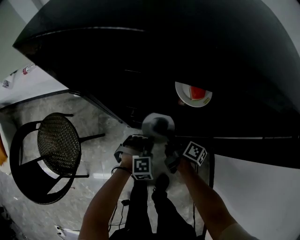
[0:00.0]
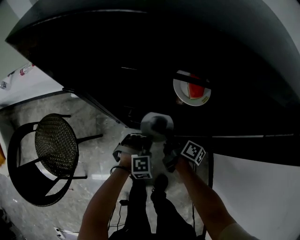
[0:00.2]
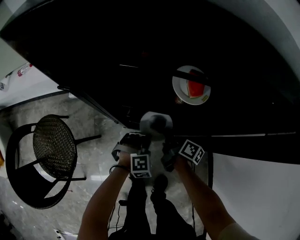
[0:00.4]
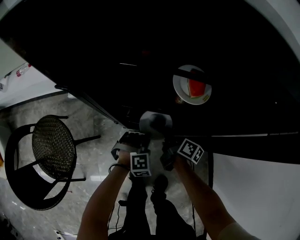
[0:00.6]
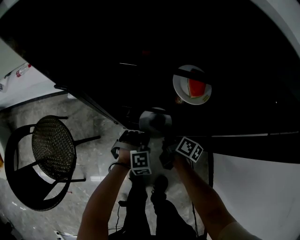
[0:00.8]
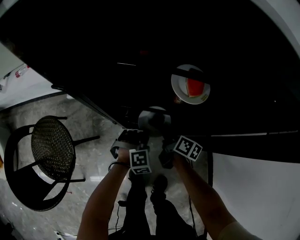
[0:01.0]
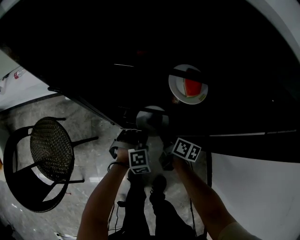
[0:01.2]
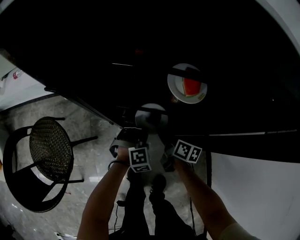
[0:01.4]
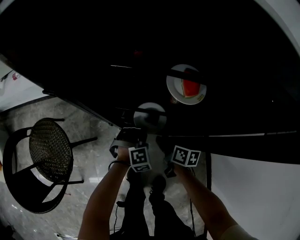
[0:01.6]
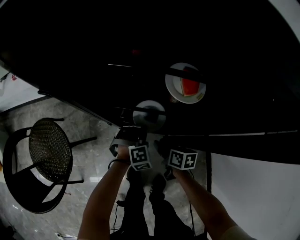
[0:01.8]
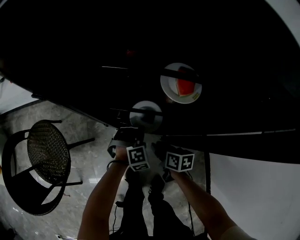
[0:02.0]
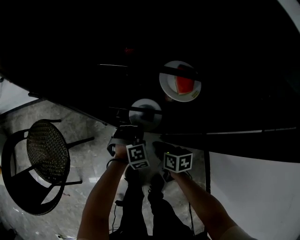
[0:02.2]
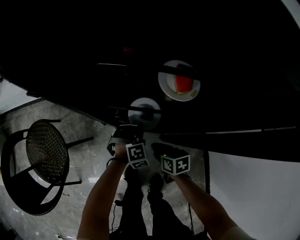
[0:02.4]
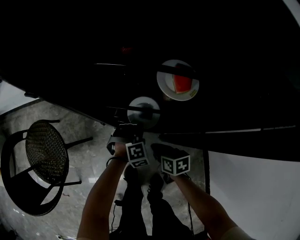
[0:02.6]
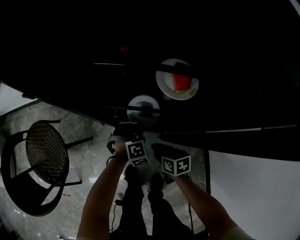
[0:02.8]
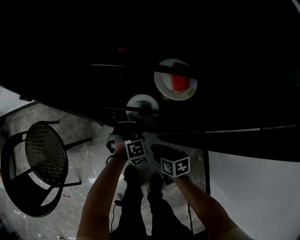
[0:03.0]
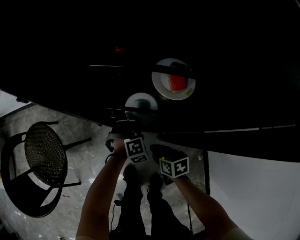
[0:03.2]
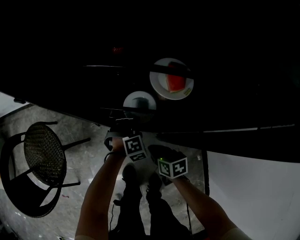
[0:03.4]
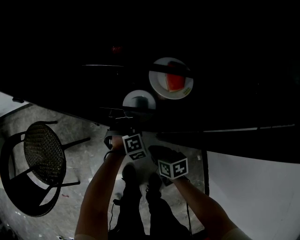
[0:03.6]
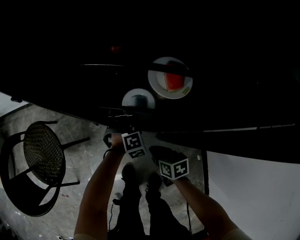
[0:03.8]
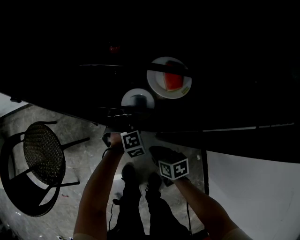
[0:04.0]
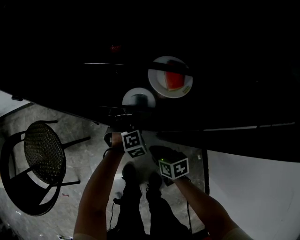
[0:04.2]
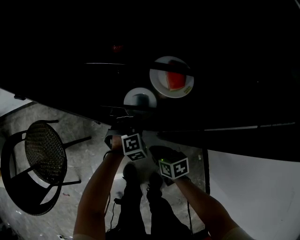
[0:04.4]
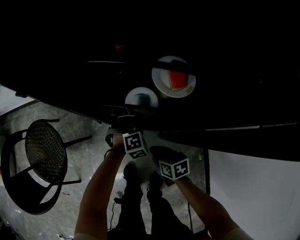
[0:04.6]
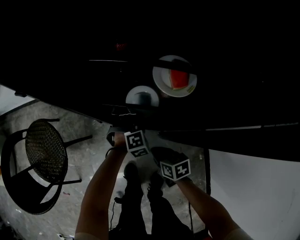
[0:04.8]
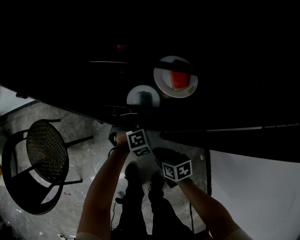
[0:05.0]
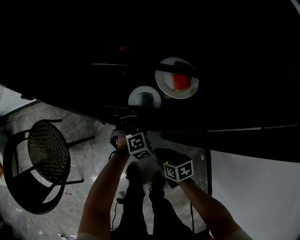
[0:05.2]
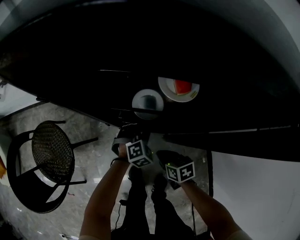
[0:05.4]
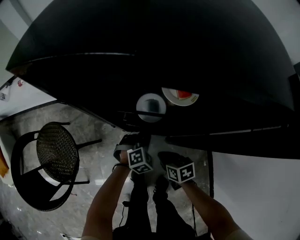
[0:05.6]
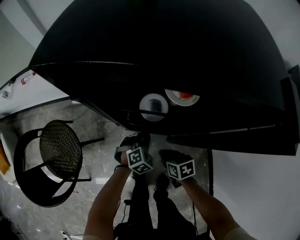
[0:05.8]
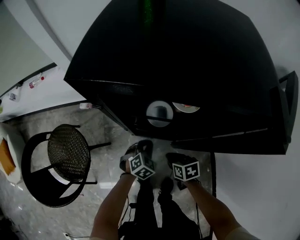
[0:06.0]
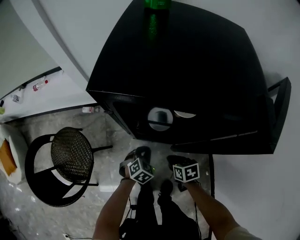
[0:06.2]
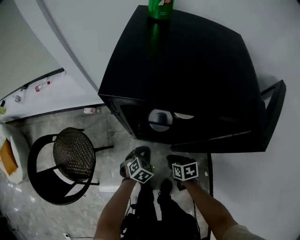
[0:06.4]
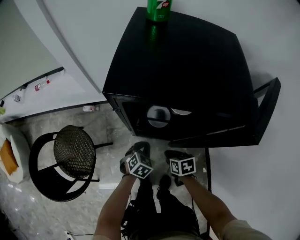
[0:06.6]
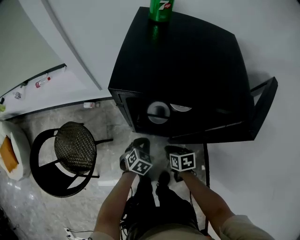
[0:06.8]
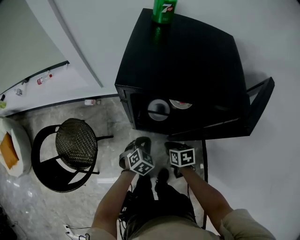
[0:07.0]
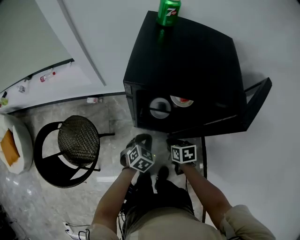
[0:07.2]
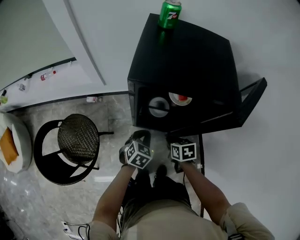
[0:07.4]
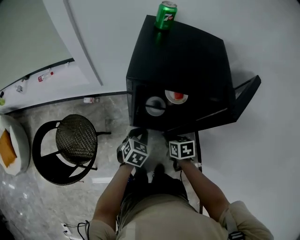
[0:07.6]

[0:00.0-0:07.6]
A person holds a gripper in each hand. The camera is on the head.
0.0 to 1.6 s: The right gripper swivels roughly 30 degrees, and opens up, while the left gripper moves approximately 5 cm.
1.6 to 3.0 s: The right gripper ends up approximately 5 cm from where it was, rotates approximately 20 degrees, and closes up.
3.0 to 4.6 s: The grippers move only a little.
4.6 to 6.0 s: The left gripper goes roughly 10 cm upward, backward and to the left, and changes its angle by roughly 30 degrees, while the right gripper is displaced upward by approximately 5 cm.
6.0 to 7.6 s: Both grippers travel together upward, approximately 20 cm. The left gripper swivels about 20 degrees.

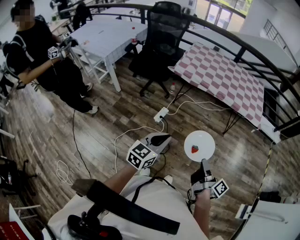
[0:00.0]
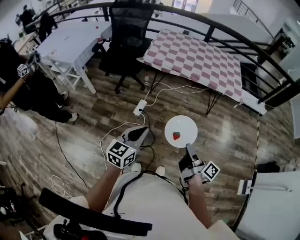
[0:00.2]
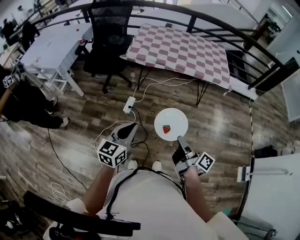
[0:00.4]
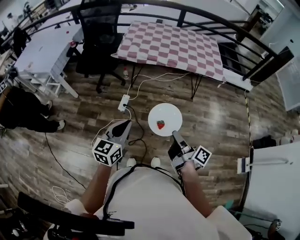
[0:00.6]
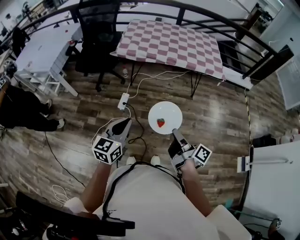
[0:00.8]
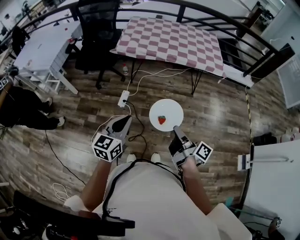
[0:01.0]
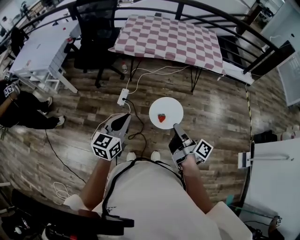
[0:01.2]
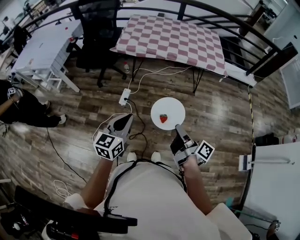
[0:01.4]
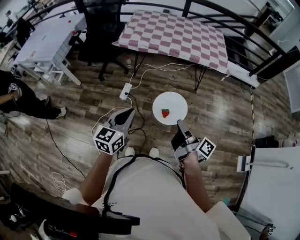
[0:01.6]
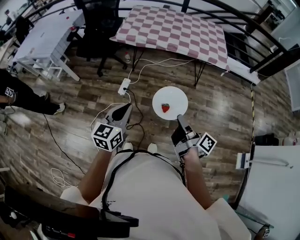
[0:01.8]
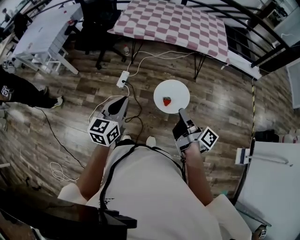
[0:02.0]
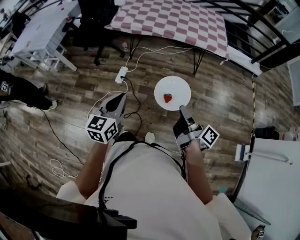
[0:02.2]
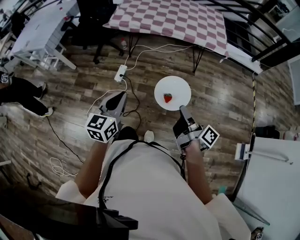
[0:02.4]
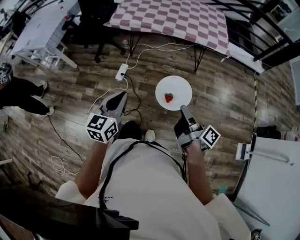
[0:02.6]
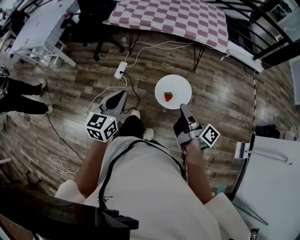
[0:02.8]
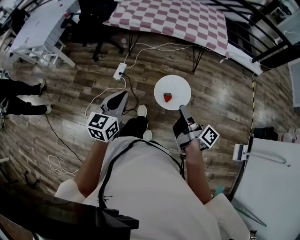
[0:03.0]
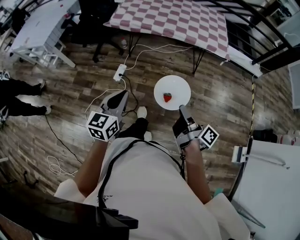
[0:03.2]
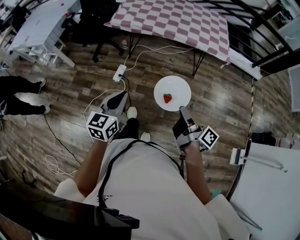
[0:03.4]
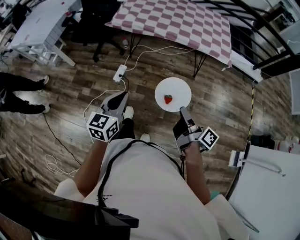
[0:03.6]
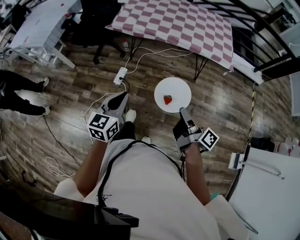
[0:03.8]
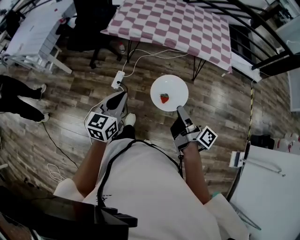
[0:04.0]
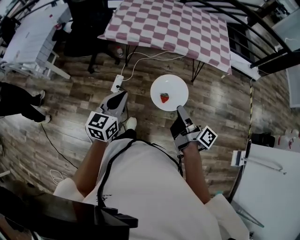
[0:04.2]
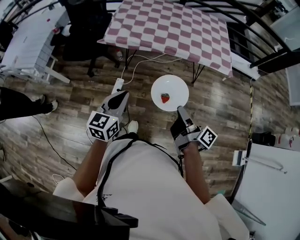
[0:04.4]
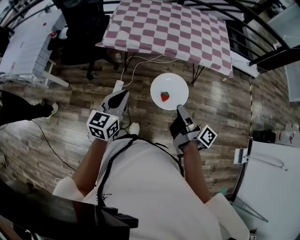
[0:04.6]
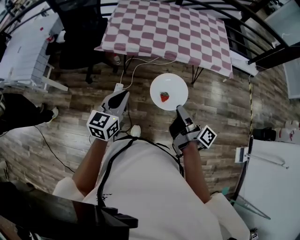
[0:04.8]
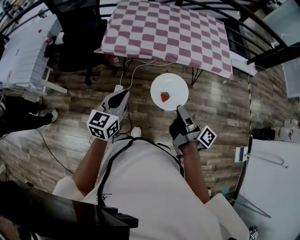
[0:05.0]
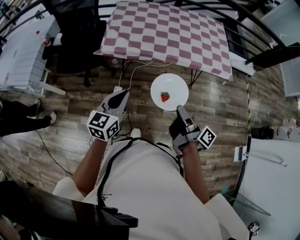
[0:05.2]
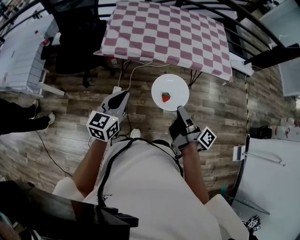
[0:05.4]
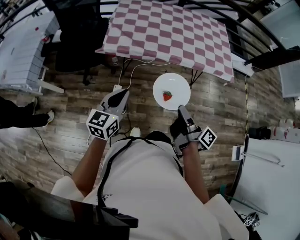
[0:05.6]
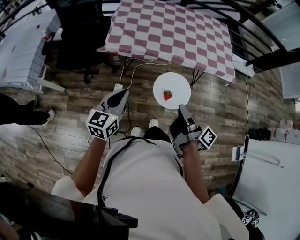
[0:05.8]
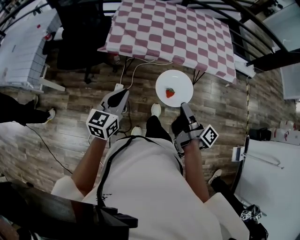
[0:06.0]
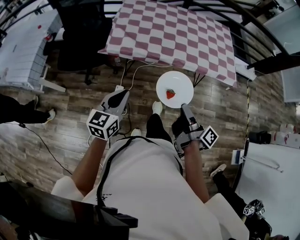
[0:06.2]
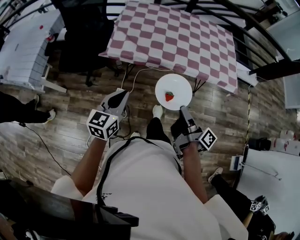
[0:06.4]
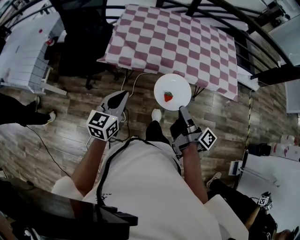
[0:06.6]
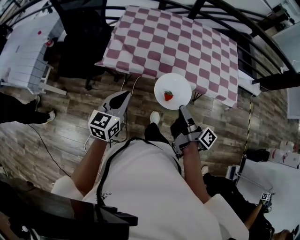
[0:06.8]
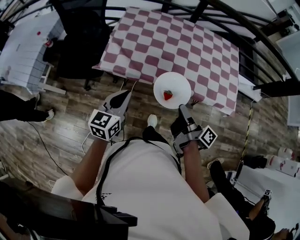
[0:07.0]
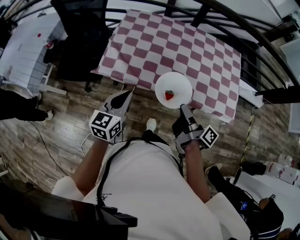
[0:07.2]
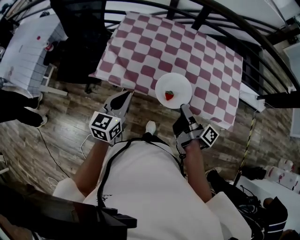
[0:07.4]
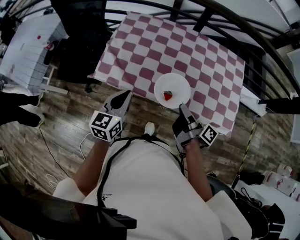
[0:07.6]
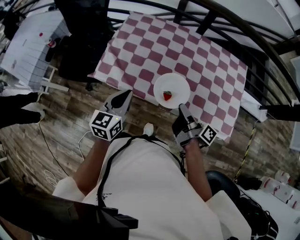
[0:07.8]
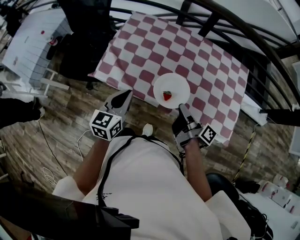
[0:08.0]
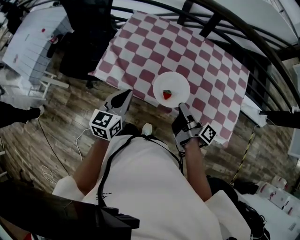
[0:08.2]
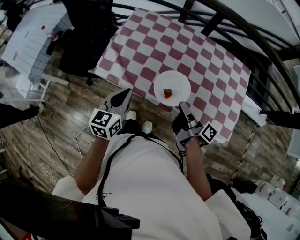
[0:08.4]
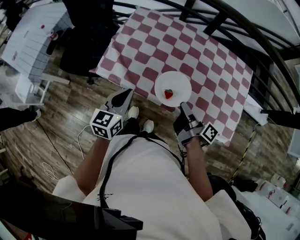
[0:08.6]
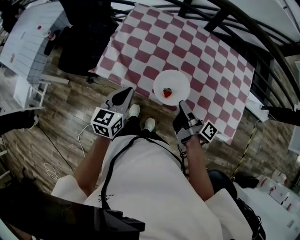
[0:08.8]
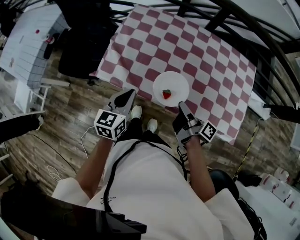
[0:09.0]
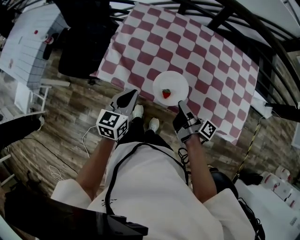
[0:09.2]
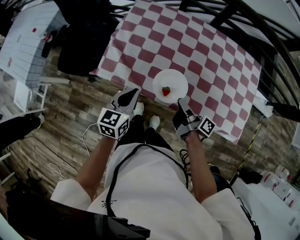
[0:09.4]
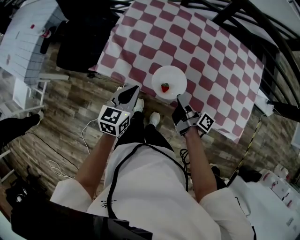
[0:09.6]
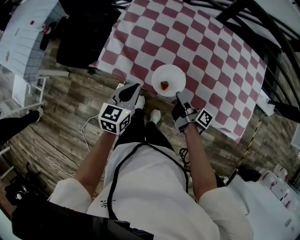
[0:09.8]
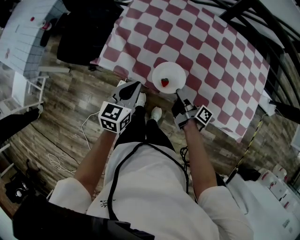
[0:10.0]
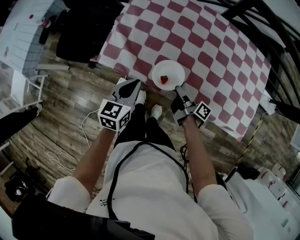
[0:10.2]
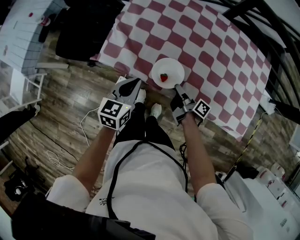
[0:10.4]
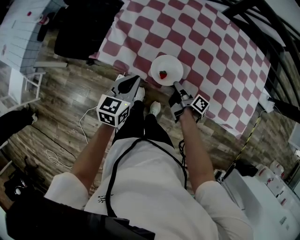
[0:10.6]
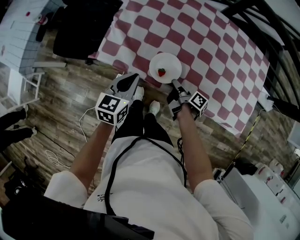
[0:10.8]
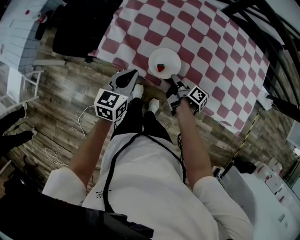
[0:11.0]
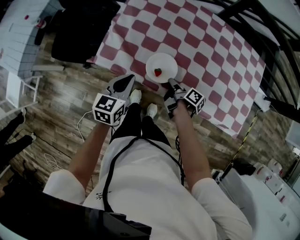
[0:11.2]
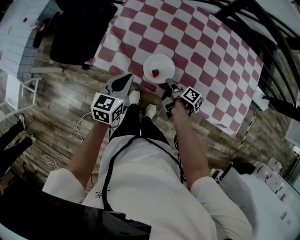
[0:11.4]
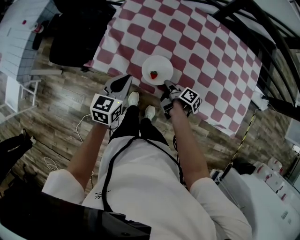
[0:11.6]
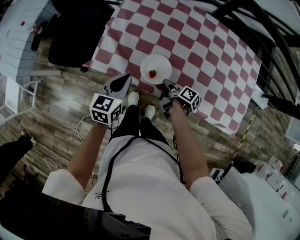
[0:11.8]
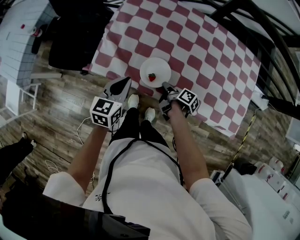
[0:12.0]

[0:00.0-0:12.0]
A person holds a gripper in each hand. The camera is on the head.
0.0 to 1.6 s: The left gripper ends up some 5 cm from where it was.
1.6 to 3.0 s: The left gripper moves some 5 cm.
3.0 to 4.4 s: The left gripper changes place by roughly 25 cm.
4.4 to 6.0 s: The left gripper moves about 15 cm.
6.0 to 7.6 s: The left gripper changes place by roughly 30 cm.
7.6 to 9.0 s: The left gripper shifts by approximately 10 cm.
9.0 to 10.4 s: The left gripper heads downward, covering approximately 10 cm.

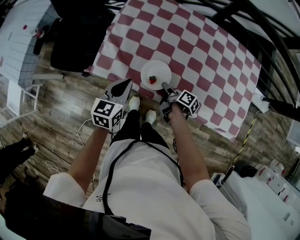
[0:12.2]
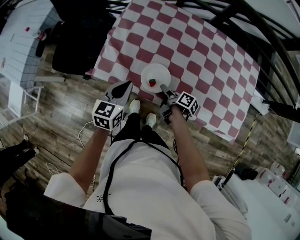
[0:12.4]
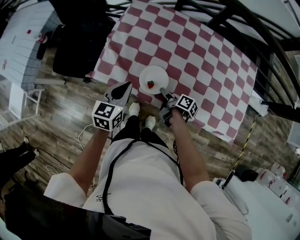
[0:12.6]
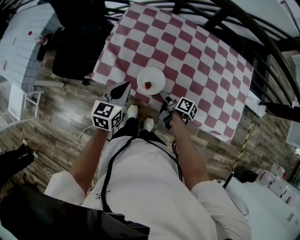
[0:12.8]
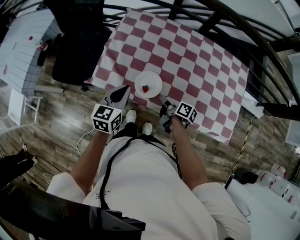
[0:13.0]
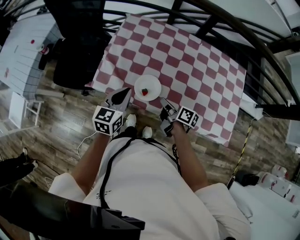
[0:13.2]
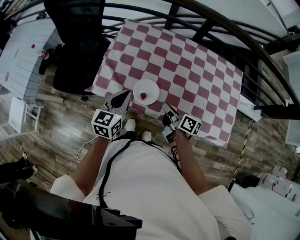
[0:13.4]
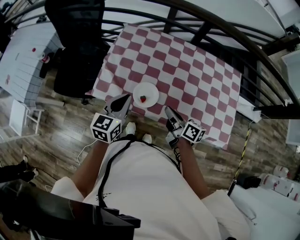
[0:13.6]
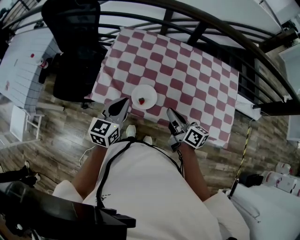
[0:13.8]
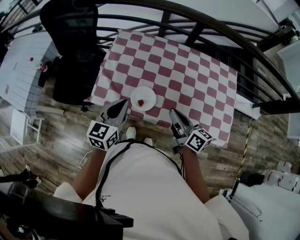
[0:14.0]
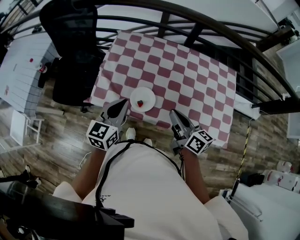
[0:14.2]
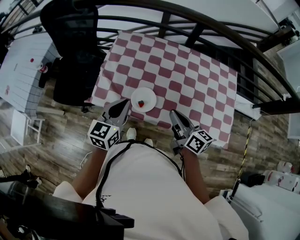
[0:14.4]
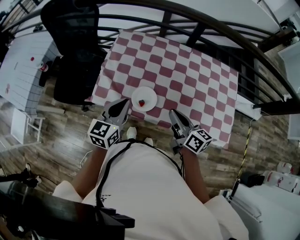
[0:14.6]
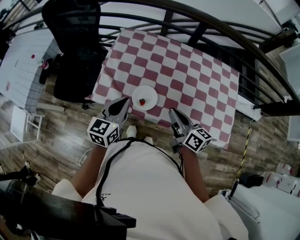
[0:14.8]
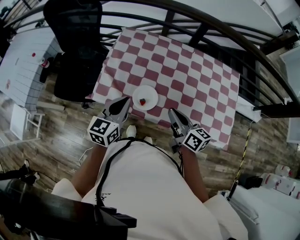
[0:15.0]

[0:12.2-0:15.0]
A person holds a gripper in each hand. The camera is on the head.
12.2 to 13.6 s: The left gripper moves upward, approximately 10 cm.

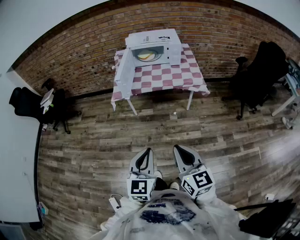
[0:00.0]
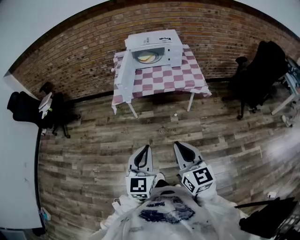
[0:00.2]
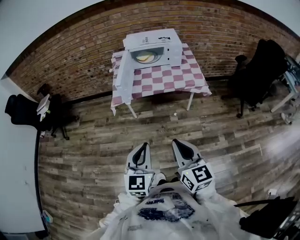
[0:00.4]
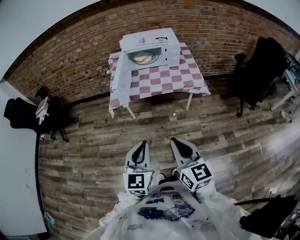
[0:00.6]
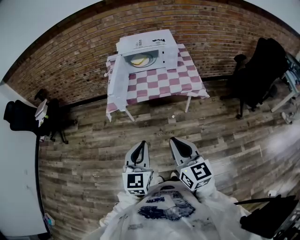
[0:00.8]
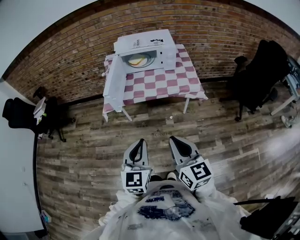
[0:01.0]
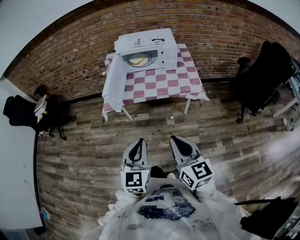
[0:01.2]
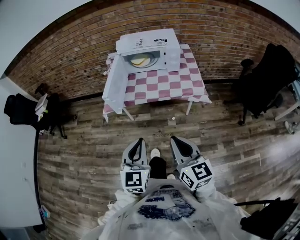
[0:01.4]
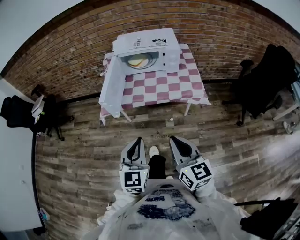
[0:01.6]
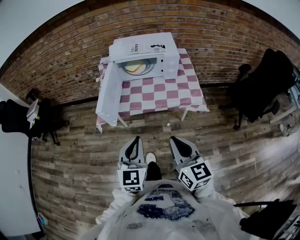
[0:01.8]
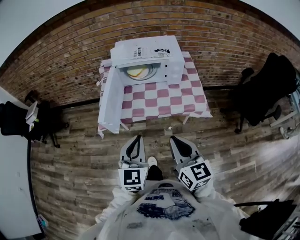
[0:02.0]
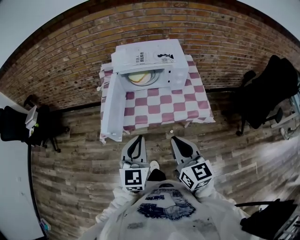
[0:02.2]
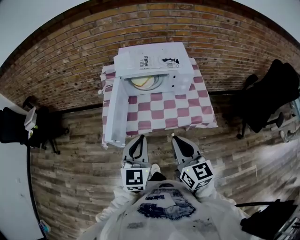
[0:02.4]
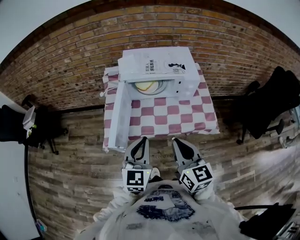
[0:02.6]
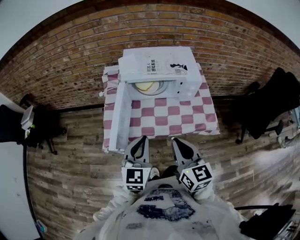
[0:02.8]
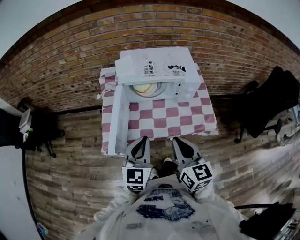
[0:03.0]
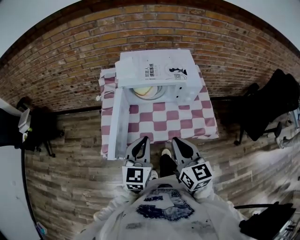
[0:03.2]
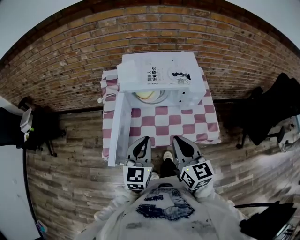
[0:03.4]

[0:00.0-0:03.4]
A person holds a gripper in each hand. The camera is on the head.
0.0 to 1.6 s: The right gripper shifts by roughly 25 cm.
1.6 to 3.4 s: The right gripper moves about 35 cm.
